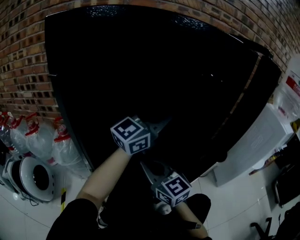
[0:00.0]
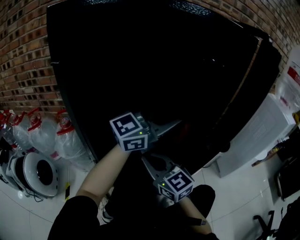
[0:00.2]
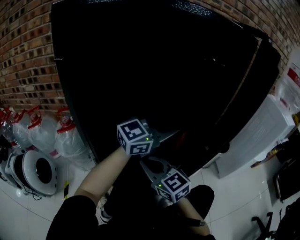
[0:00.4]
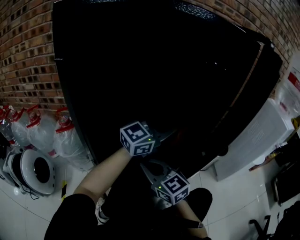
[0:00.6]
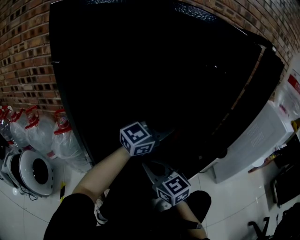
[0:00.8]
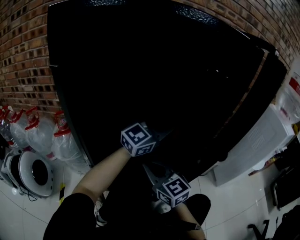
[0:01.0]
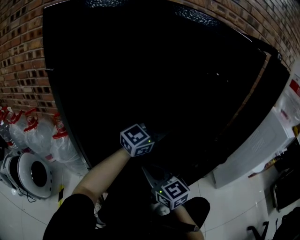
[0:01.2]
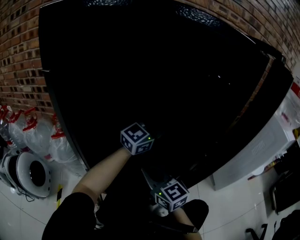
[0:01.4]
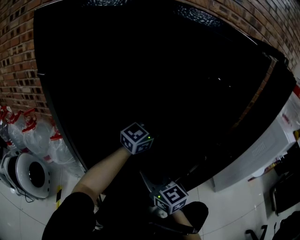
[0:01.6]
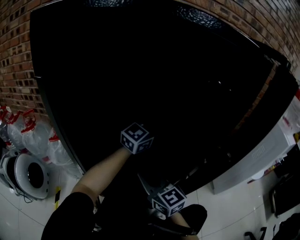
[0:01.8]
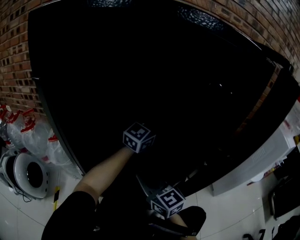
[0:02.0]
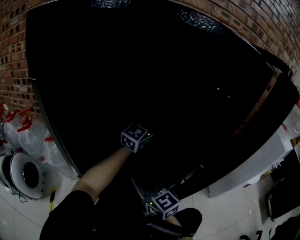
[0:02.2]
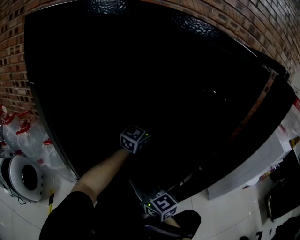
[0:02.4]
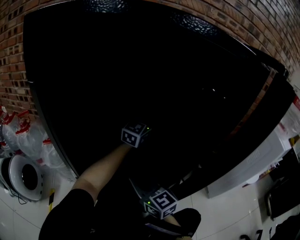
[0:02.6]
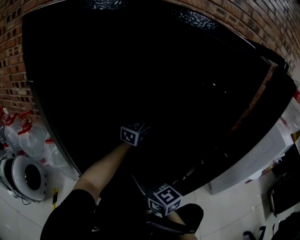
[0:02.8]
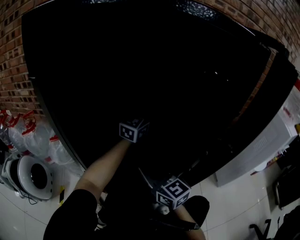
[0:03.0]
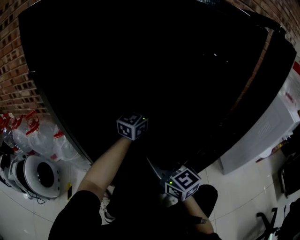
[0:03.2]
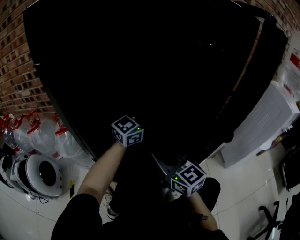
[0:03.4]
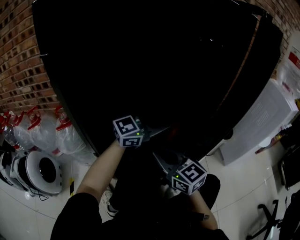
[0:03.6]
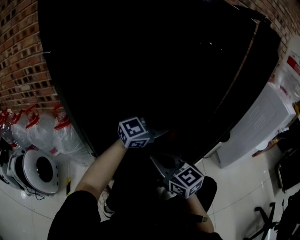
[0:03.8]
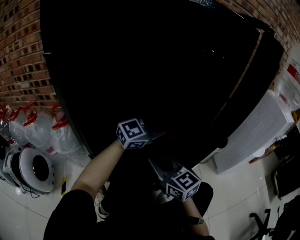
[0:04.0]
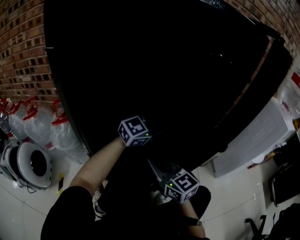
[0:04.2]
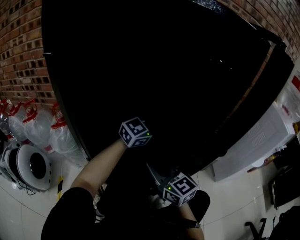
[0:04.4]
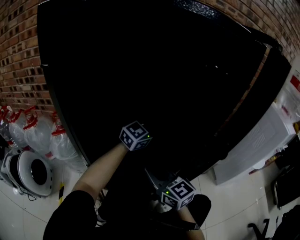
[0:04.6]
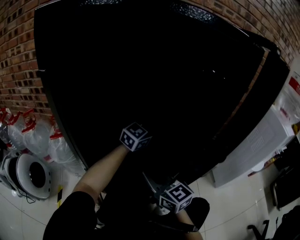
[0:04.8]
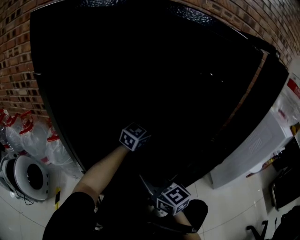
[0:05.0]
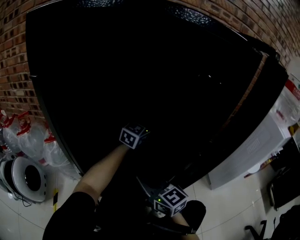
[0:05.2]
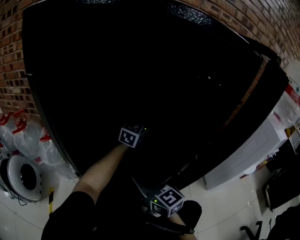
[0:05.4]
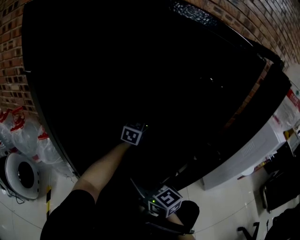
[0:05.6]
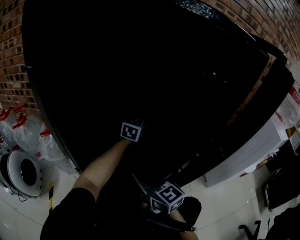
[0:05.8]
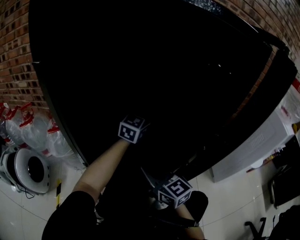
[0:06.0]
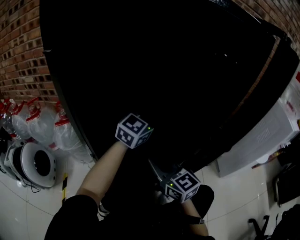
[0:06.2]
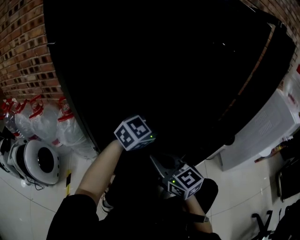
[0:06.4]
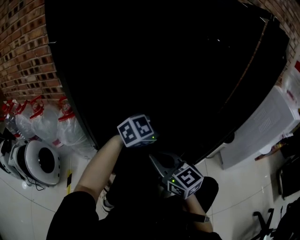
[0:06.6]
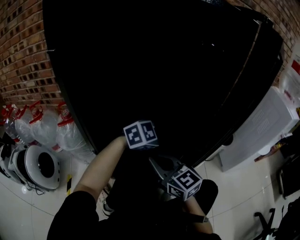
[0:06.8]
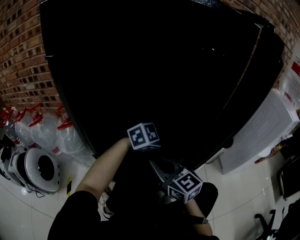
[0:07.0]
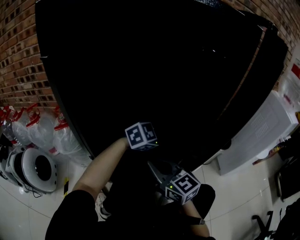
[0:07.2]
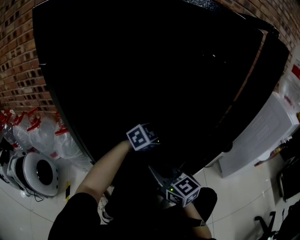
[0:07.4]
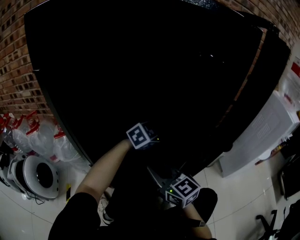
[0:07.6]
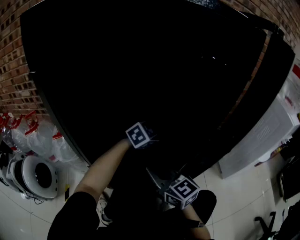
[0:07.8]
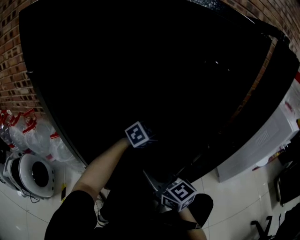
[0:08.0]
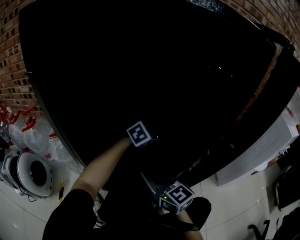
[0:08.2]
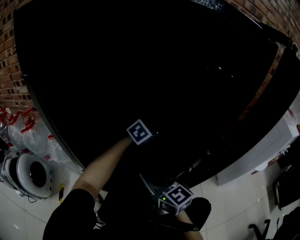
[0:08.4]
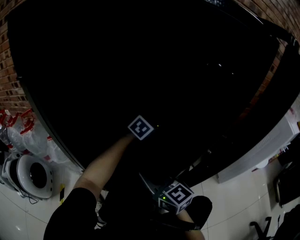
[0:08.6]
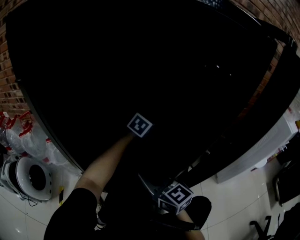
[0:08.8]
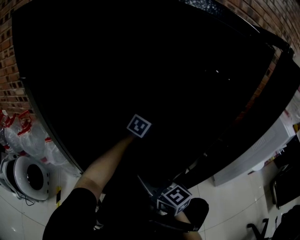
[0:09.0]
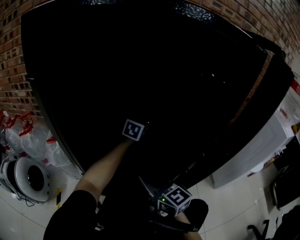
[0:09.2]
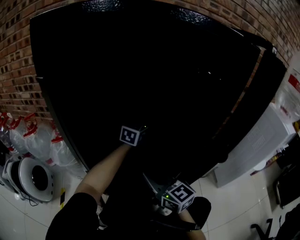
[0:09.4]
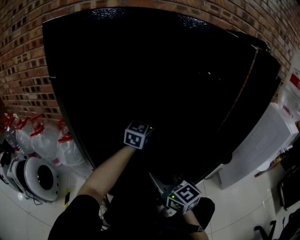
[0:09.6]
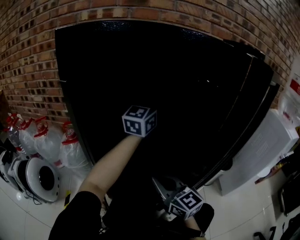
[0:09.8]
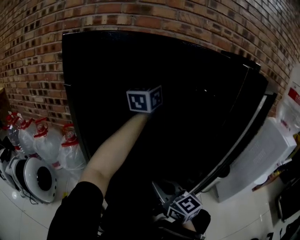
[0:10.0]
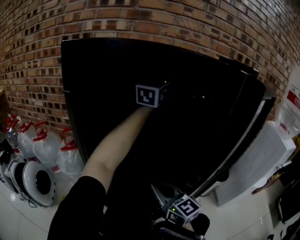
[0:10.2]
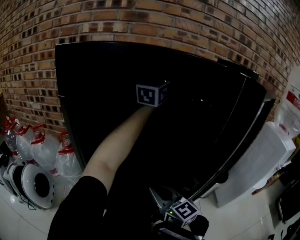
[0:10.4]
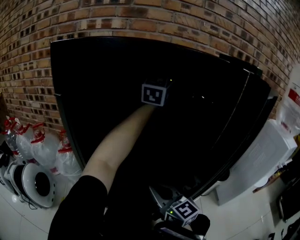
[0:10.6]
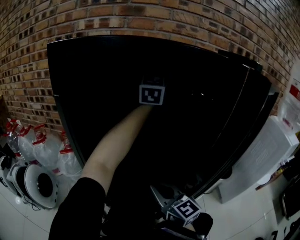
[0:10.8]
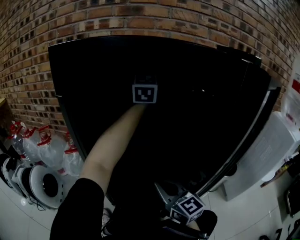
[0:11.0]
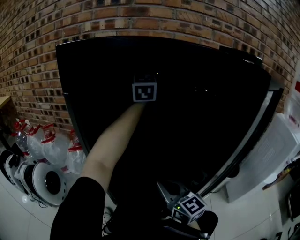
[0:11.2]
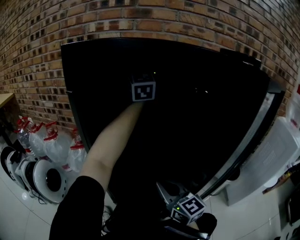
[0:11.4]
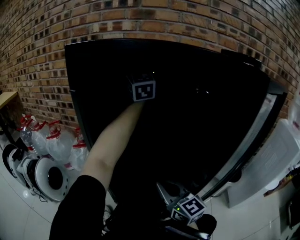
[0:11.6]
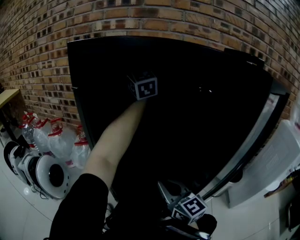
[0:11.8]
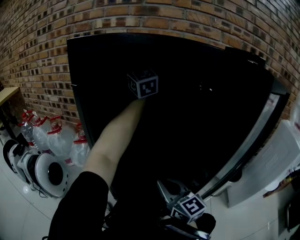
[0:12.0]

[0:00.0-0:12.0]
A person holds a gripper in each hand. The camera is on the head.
0:00.0 to 0:01.6: The left gripper shifts some 10 cm downward and forward.
0:01.6 to 0:03.0: The left gripper shifts about 10 cm forward.
0:03.0 to 0:04.4: The left gripper moves backward and to the right, about 10 cm, and rotates roughly 30 degrees.
0:04.4 to 0:06.0: The left gripper shifts roughly 10 cm forward and to the left, and rotates approximately 30 degrees.
0:06.0 to 0:07.6: The left gripper heads downward, to the right and backward, covering approximately 15 cm, and points its fingers about 30 degrees further downward.
0:07.6 to 0:09.0: The left gripper goes approximately 15 cm forward, and turns by some 30 degrees.
0:09.0 to 0:10.4: The right gripper moves approximately 5 cm. The left gripper moves upward, about 40 cm, and tips its fingers upward by roughly 50 degrees.
0:10.4 to 0:12.0: The left gripper changes place by some 20 cm, and rotates about 50 degrees.

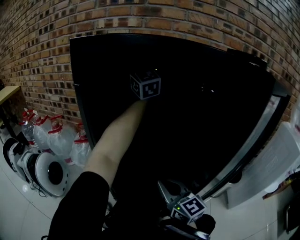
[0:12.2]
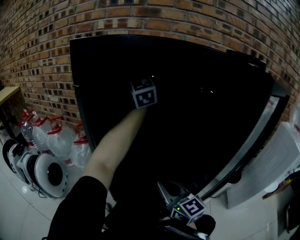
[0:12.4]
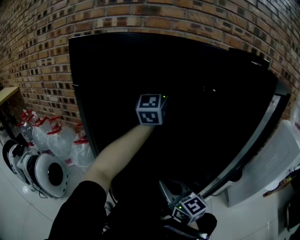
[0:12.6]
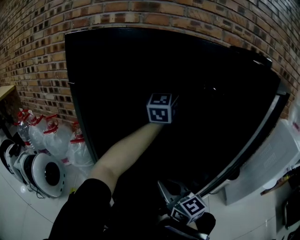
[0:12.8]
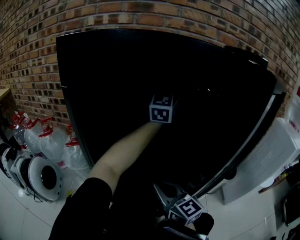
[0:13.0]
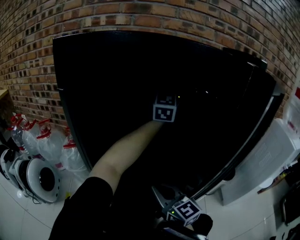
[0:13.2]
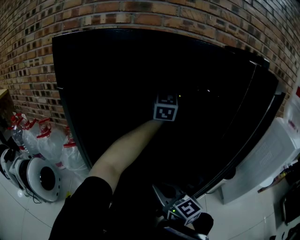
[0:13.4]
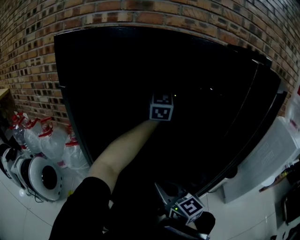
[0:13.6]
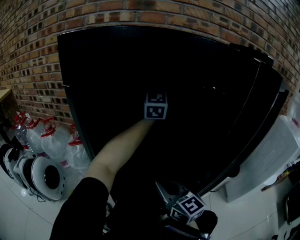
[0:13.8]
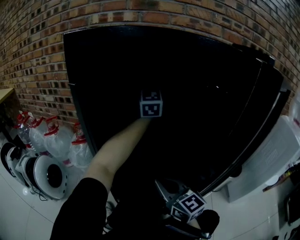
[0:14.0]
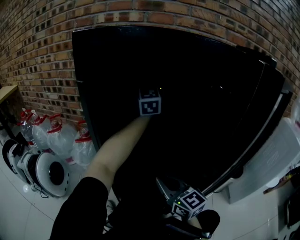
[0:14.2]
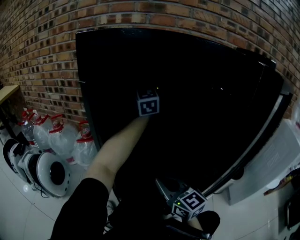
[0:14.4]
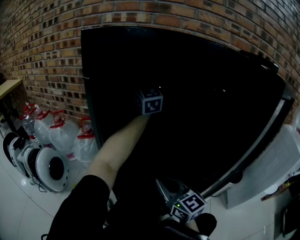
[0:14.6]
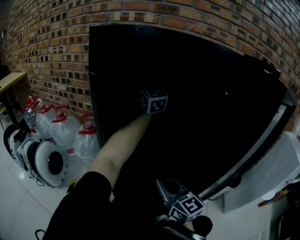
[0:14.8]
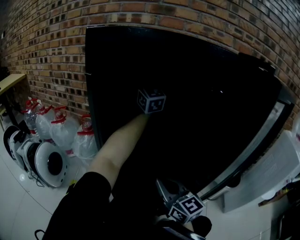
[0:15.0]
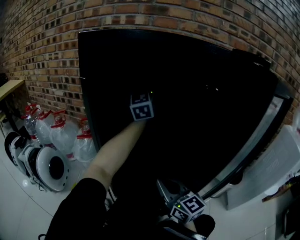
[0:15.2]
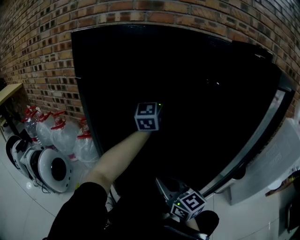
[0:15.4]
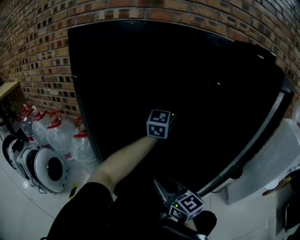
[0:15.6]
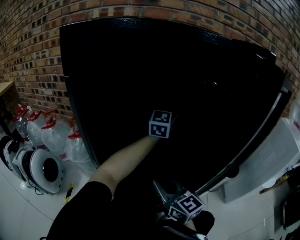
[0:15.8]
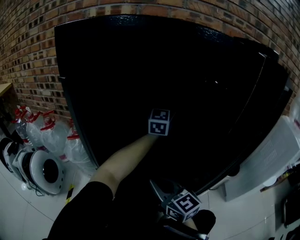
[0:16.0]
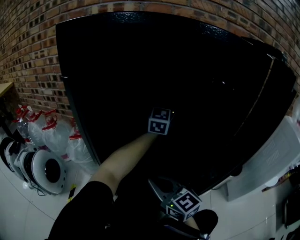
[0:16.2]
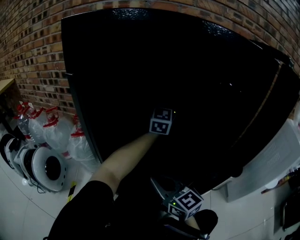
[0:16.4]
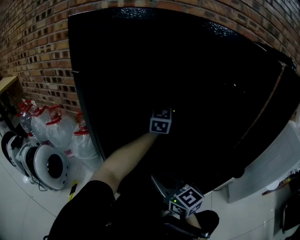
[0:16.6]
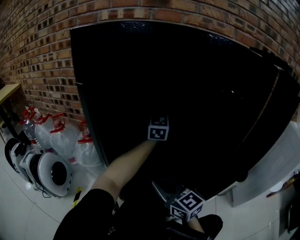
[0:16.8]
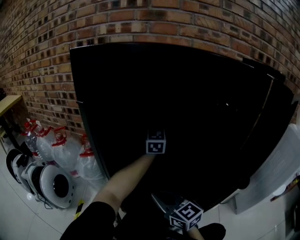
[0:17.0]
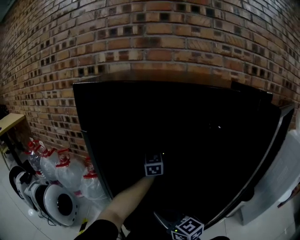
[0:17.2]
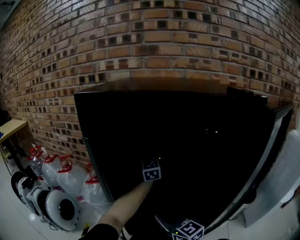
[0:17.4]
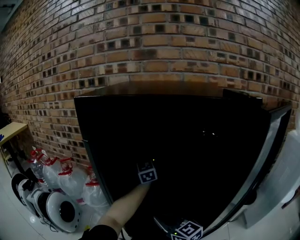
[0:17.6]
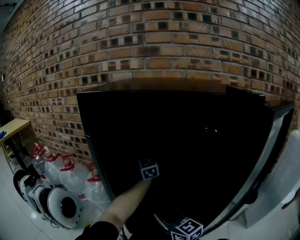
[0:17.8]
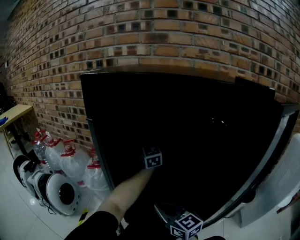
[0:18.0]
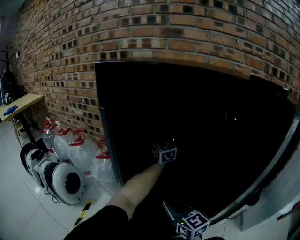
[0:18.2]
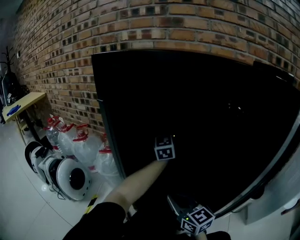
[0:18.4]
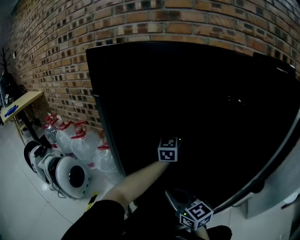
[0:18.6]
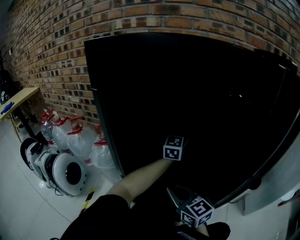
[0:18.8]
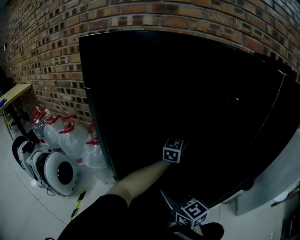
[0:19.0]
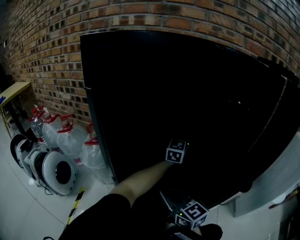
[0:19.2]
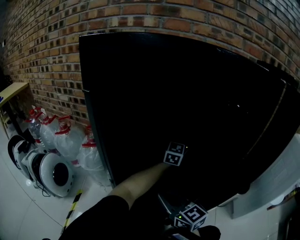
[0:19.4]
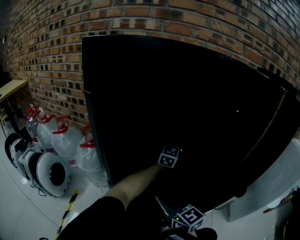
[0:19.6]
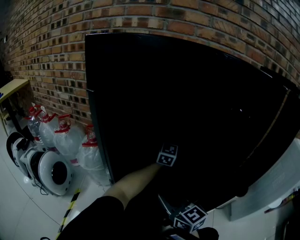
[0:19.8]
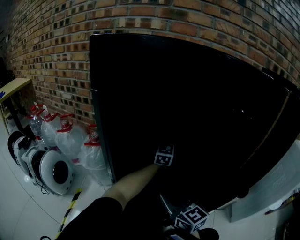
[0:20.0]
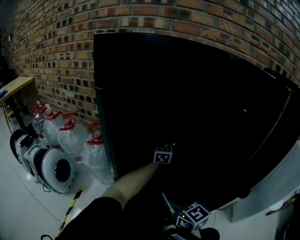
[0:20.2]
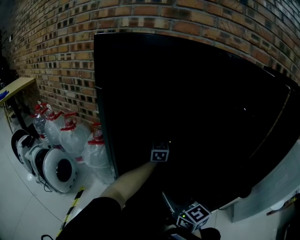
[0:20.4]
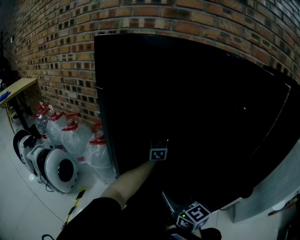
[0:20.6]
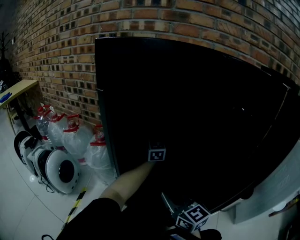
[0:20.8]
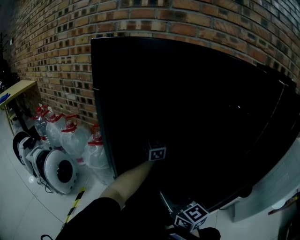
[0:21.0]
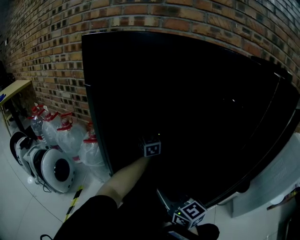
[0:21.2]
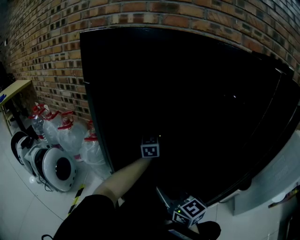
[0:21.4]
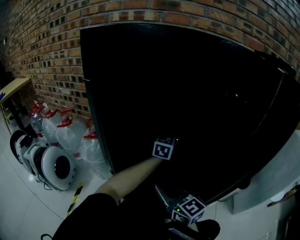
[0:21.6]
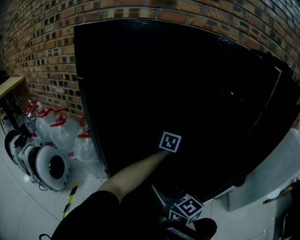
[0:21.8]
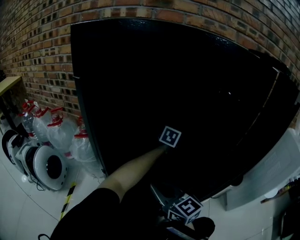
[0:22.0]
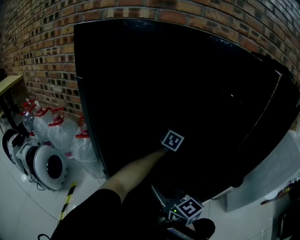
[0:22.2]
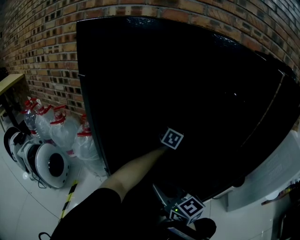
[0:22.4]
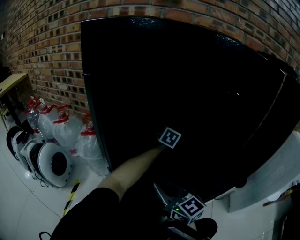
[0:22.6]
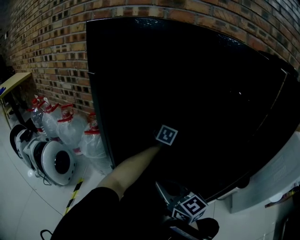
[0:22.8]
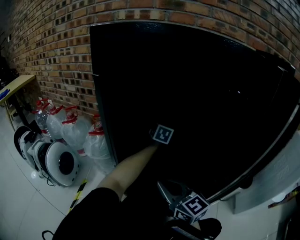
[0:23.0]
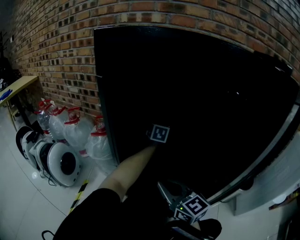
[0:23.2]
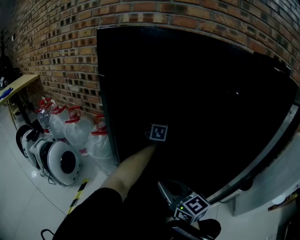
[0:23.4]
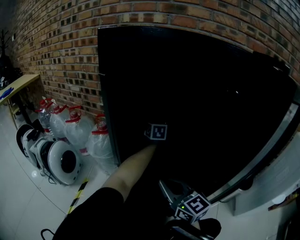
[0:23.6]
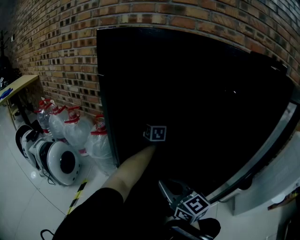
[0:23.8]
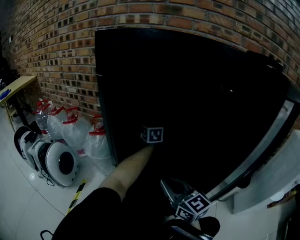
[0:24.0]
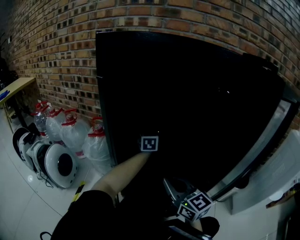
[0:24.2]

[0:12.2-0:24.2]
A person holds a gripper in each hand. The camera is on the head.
0:12.2 to 0:13.8: The left gripper travels to the right and downward by roughly 15 cm, and rotates roughly 30 degrees.
0:13.8 to 0:15.2: The left gripper travels to the left by about 10 cm.
0:15.2 to 0:16.6: The right gripper ends up approximately 5 cm from where it was; the left gripper shifts approximately 15 cm to the right and downward, and rotates about 20 degrees.
0:16.6 to 0:18.2: The left gripper moves to the left, approximately 10 cm, and rotates approximately 30 degrees.
0:18.2 to 0:19.8: The left gripper is displaced to the right and downward by approximately 15 cm, and swivels roughly 40 degrees.
0:19.8 to 0:21.2: The left gripper travels to the left and forward by some 15 cm, and rotates roughly 30 degrees.
0:21.2 to 0:22.6: The left gripper moves to the right and downward, about 20 cm, and angles its fingers downward, by some 30 degrees.
0:22.6 to 0:24.2: The left gripper heads to the left, covering approximately 15 cm, and changes its angle by approximately 30 degrees.
